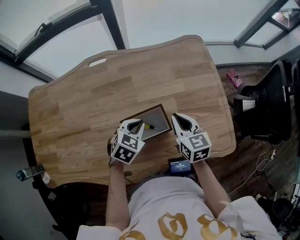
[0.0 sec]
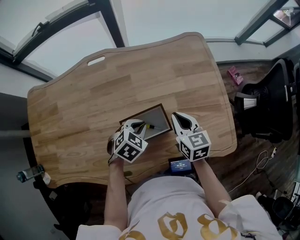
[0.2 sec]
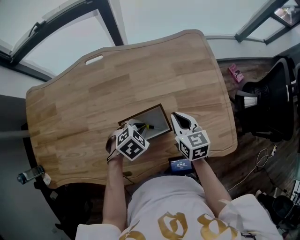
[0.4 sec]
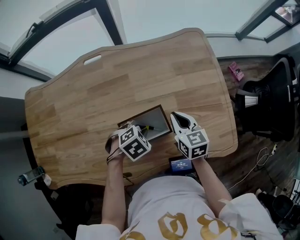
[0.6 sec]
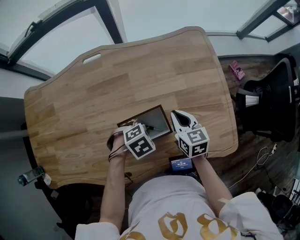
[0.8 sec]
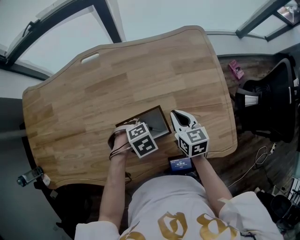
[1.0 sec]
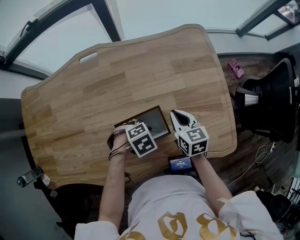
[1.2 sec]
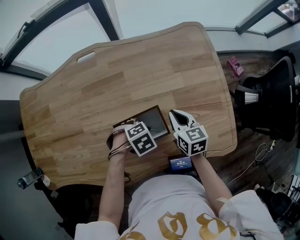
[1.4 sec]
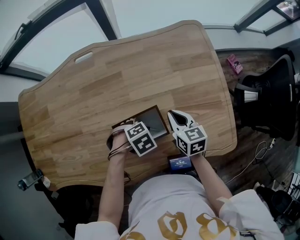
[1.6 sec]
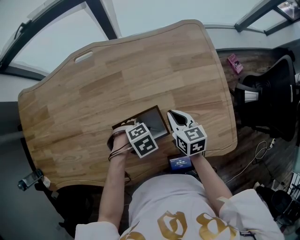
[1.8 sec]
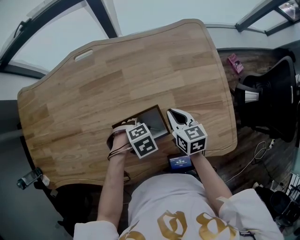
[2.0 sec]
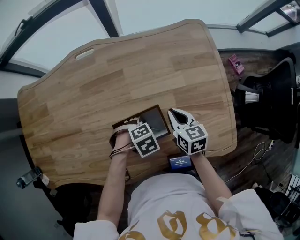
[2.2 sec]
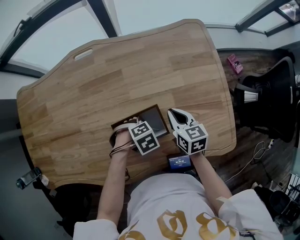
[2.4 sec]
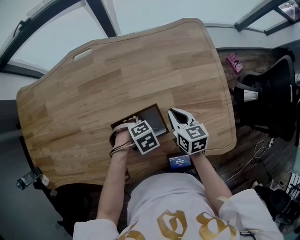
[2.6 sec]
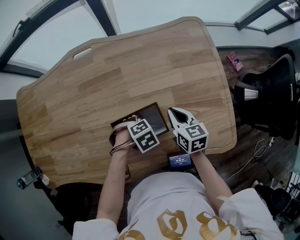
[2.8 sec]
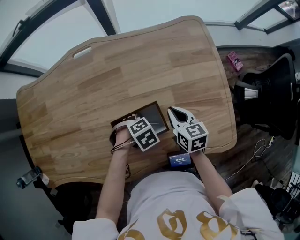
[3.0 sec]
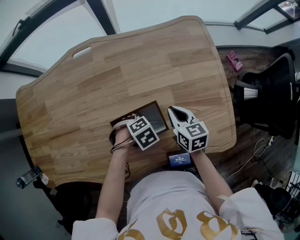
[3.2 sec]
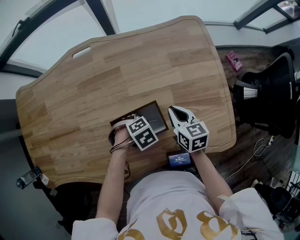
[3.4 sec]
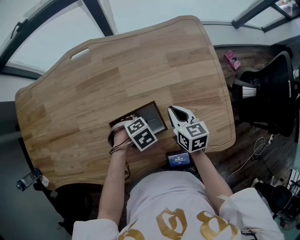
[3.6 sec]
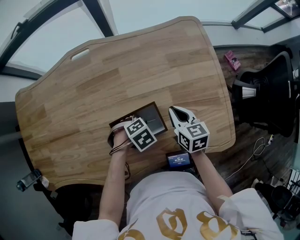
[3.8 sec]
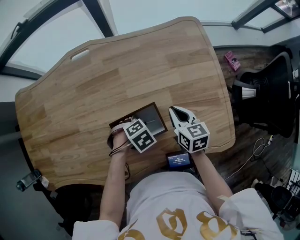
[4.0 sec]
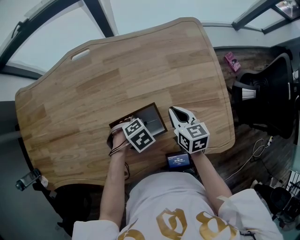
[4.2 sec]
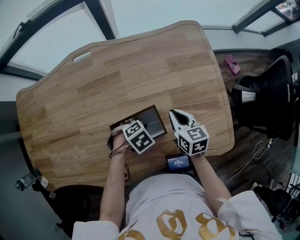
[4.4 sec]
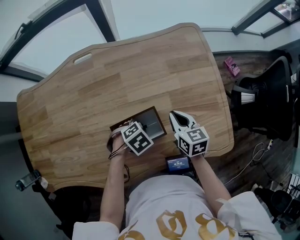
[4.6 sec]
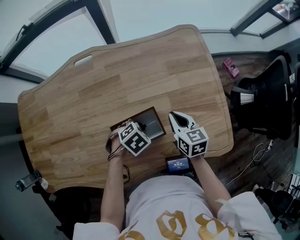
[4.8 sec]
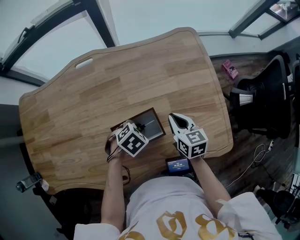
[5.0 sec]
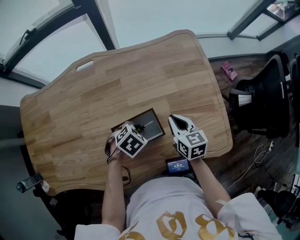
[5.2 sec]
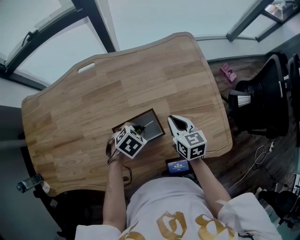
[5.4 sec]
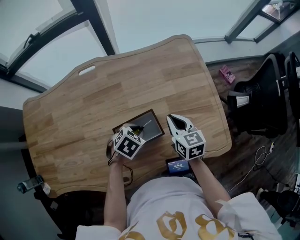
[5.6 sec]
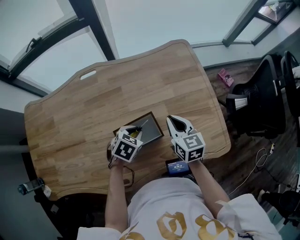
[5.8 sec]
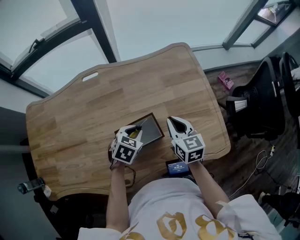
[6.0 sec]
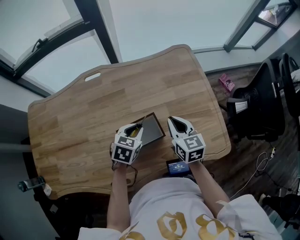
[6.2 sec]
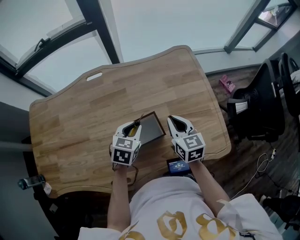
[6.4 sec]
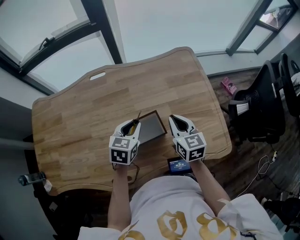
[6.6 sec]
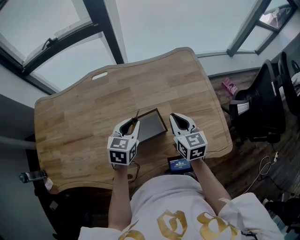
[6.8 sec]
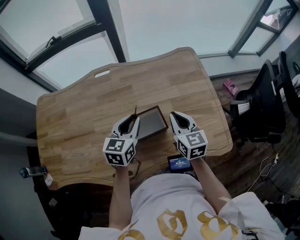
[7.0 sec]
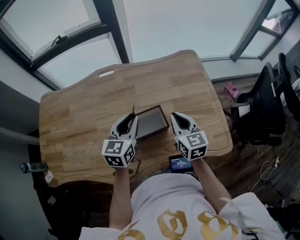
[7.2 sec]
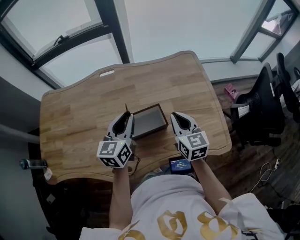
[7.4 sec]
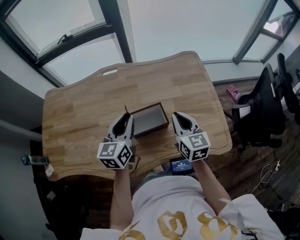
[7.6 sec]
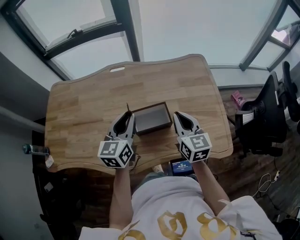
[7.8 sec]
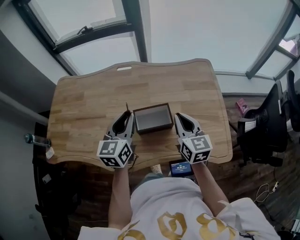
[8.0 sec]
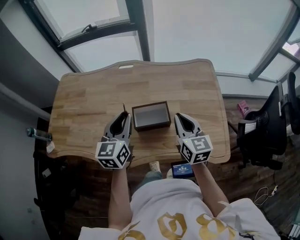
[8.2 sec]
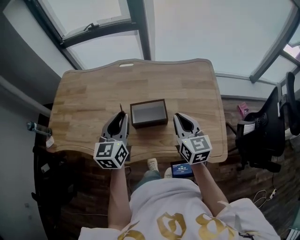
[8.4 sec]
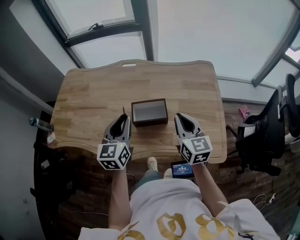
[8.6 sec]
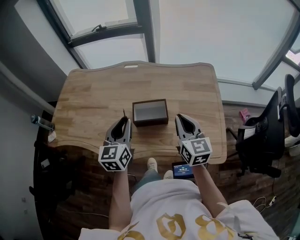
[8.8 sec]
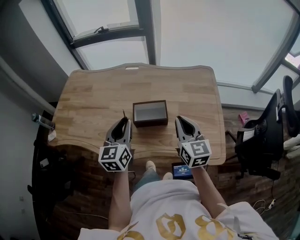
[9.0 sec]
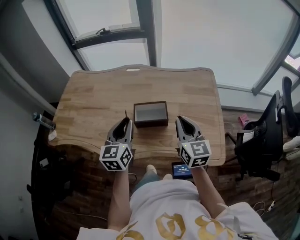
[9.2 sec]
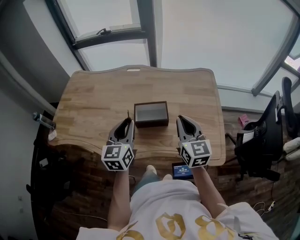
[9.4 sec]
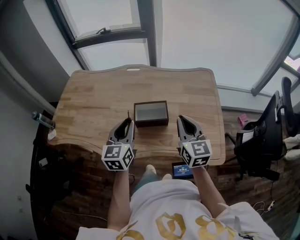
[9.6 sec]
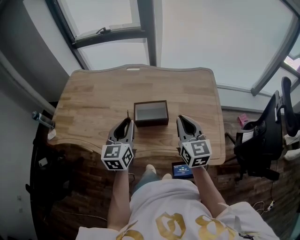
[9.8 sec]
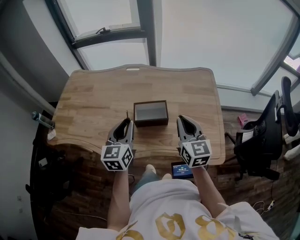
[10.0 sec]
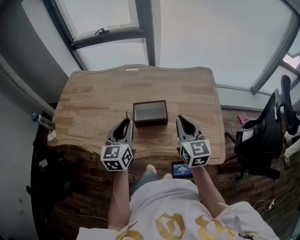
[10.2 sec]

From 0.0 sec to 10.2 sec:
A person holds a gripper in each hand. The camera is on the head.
From 0.0 sec to 1.4 sec: The two grippers go some 10 cm downward. The left gripper turns by approximately 40 degrees.
From 1.4 sec to 4.4 sec: There are only small adjustments of the grippers.
From 4.4 sec to 5.8 sec: Both grippers move upward, about 5 cm. The left gripper turns by some 30 degrees.
From 5.8 sec to 7.2 sec: The right gripper goes about 10 cm upward and backward, while the left gripper moves upward, some 15 cm, and tips its fingers upward by about 40 degrees.
From 7.2 sec to 8.8 sec: The two grippers go some 15 cm backward and upward. The left gripper changes its angle by roughly 30 degrees.
From 8.8 sec to 10.2 sec: There are only small adjustments of the grippers.

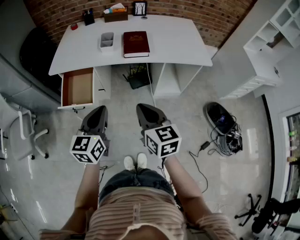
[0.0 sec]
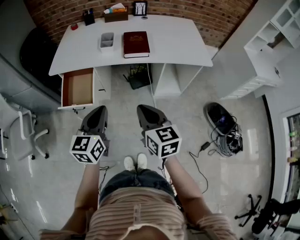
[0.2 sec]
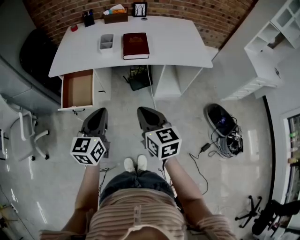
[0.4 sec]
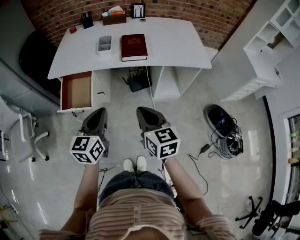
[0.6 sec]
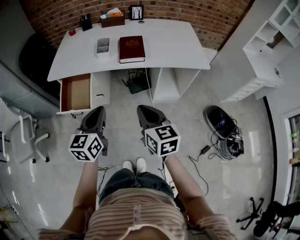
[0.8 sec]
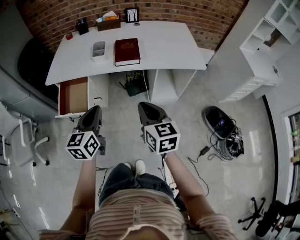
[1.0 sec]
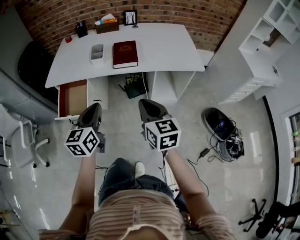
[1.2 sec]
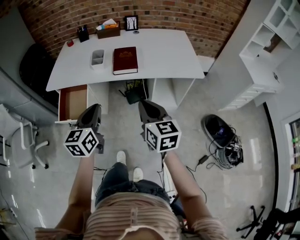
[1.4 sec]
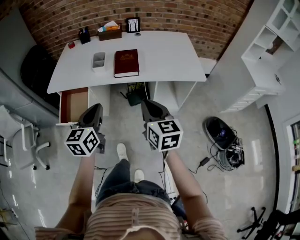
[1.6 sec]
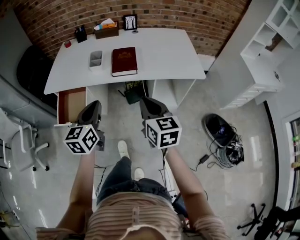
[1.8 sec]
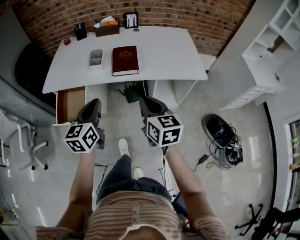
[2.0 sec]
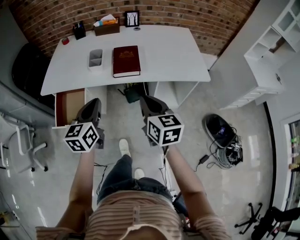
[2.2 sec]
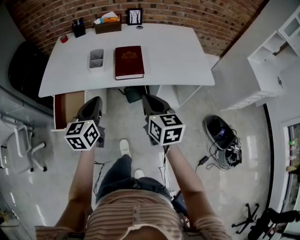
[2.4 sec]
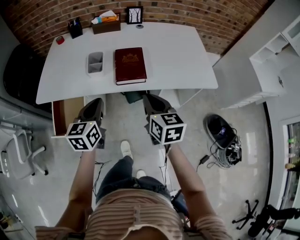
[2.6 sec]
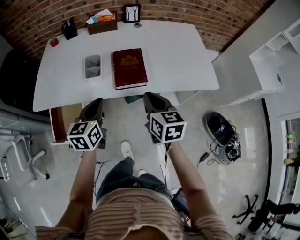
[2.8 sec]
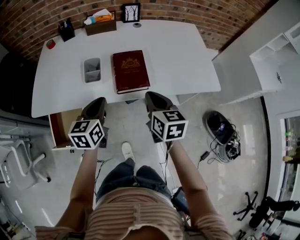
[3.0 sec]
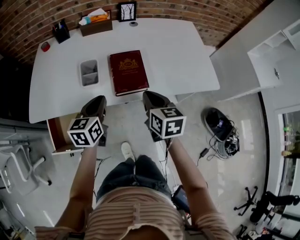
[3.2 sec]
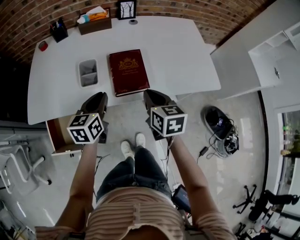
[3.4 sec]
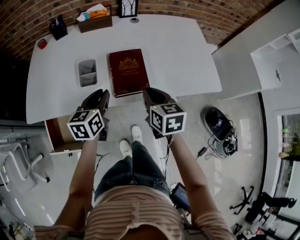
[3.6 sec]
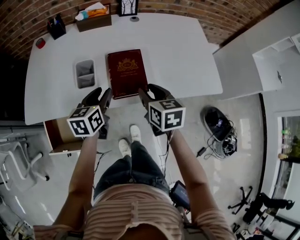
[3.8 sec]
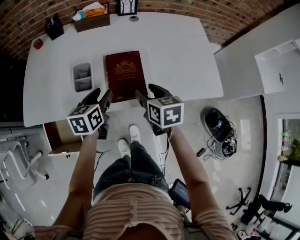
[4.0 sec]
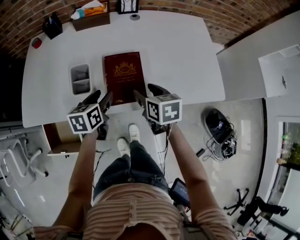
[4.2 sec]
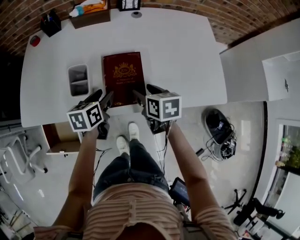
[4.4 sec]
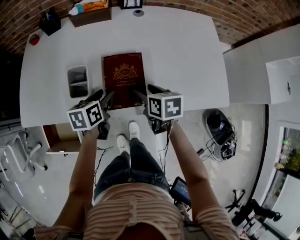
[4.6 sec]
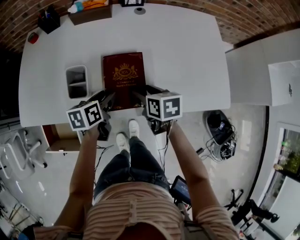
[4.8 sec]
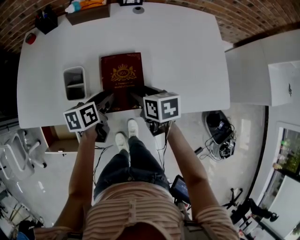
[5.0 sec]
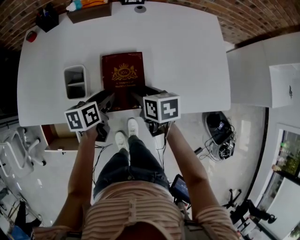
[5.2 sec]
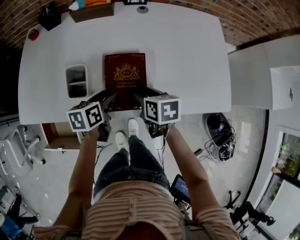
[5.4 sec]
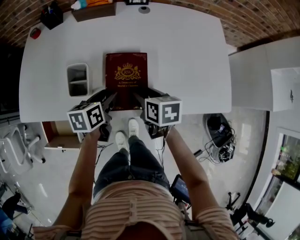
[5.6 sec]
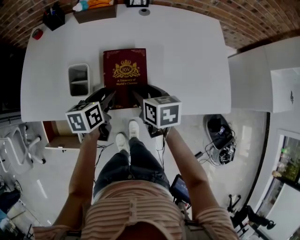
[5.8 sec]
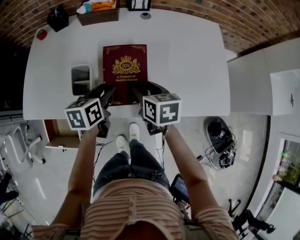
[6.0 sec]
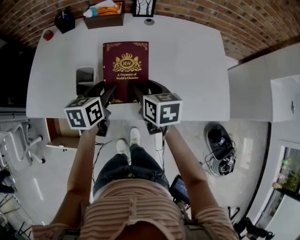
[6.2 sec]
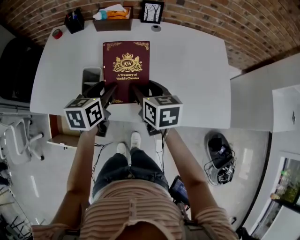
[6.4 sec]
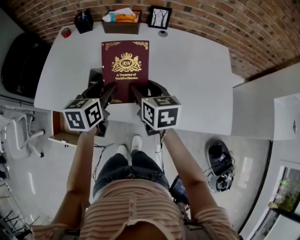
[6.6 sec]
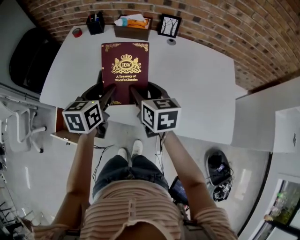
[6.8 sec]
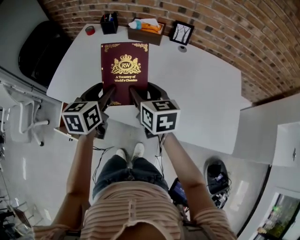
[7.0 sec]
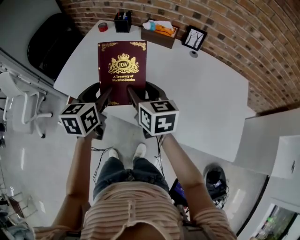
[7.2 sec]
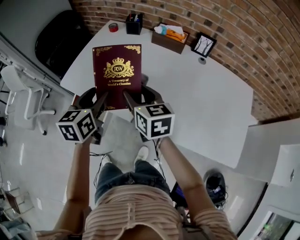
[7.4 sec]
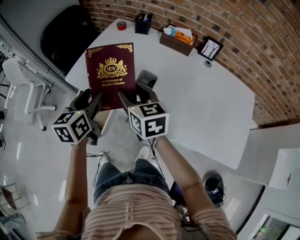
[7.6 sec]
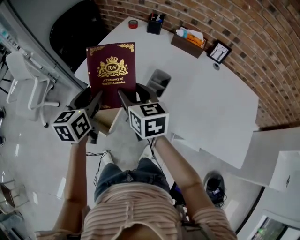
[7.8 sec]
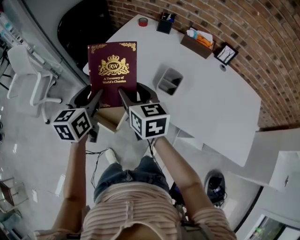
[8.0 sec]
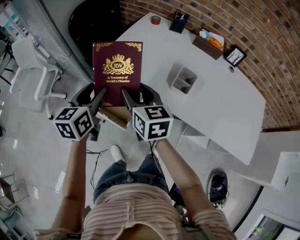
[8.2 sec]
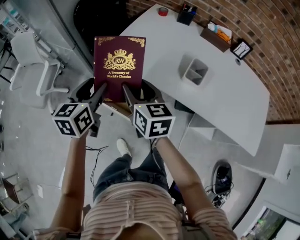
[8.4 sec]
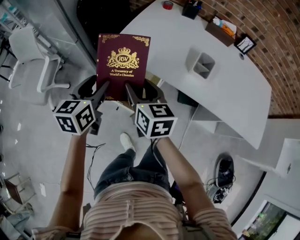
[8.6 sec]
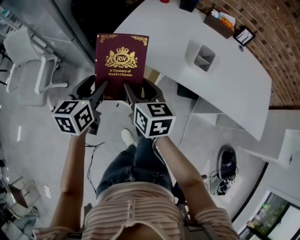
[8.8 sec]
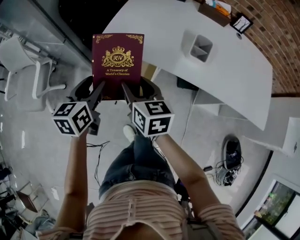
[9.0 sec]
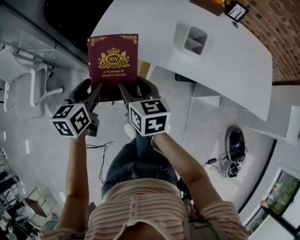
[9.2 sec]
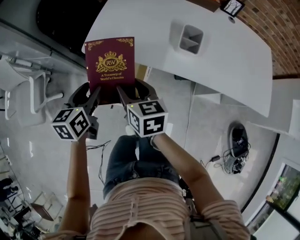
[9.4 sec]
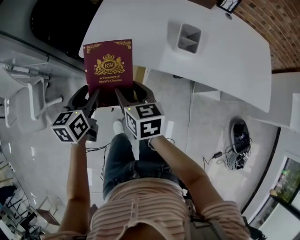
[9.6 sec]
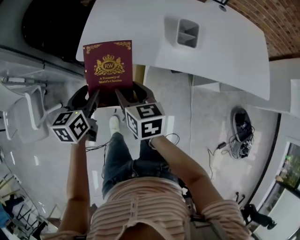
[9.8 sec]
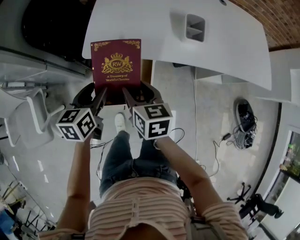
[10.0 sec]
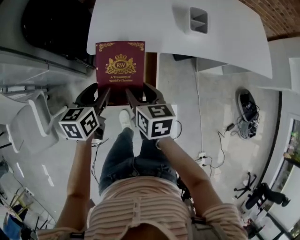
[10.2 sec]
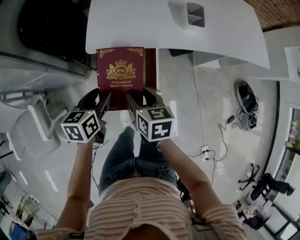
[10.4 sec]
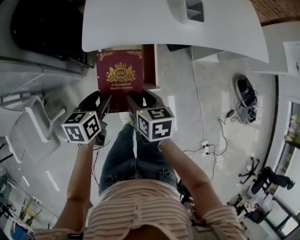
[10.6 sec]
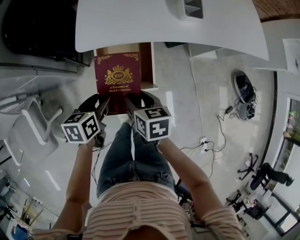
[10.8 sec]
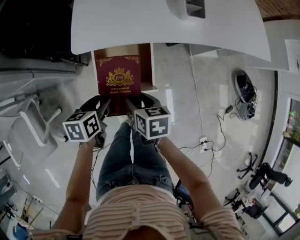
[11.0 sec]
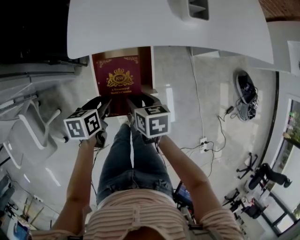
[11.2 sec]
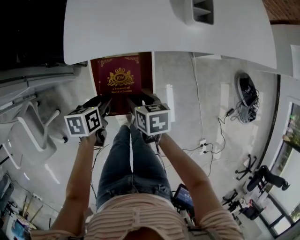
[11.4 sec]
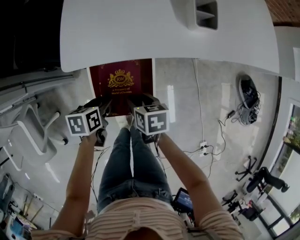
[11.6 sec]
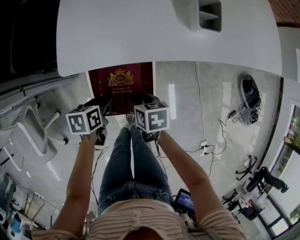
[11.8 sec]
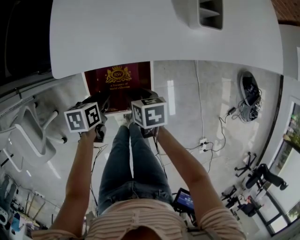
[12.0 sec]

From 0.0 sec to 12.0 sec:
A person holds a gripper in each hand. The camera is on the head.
From 0.0 sec to 1.6 sec: The right gripper travels to the right and forward by about 15 cm; the left gripper moves forward and to the right, about 10 cm.
From 1.6 sec to 3.0 sec: The two grippers go approximately 25 cm forward.
From 3.0 sec to 4.4 sec: Both grippers travel together forward and downward, roughly 15 cm. The left gripper changes its angle by approximately 20 degrees, and opens up. The right gripper changes its angle by approximately 20 degrees, and opens.
From 4.4 sec to 6.0 sec: The grippers make only small movements.
From 6.0 sec to 7.6 sec: The right gripper shifts by approximately 30 cm, and changes its angle by some 40 degrees; the left gripper ends up about 30 cm from where it was, and rotates about 40 degrees.
From 7.6 sec to 9.0 sec: Both grippers travel together to the left, approximately 30 cm.
From 9.0 sec to 10.4 sec: The grippers both shift downward by some 10 cm. The left gripper swivels roughly 30 degrees; the right gripper rotates about 30 degrees.
From 10.4 sec to 12.0 sec: The left gripper goes roughly 20 cm downward, and changes its angle by approximately 30 degrees; the right gripper shifts approximately 20 cm downward and forward, and swivels about 20 degrees.

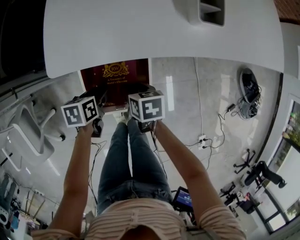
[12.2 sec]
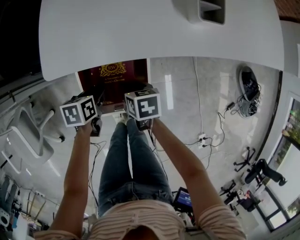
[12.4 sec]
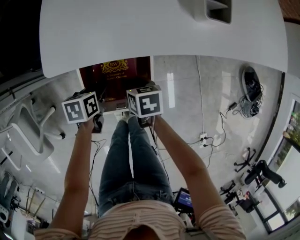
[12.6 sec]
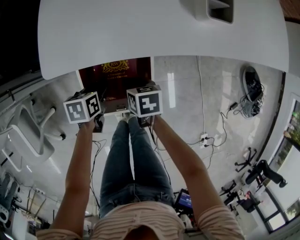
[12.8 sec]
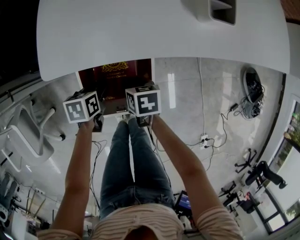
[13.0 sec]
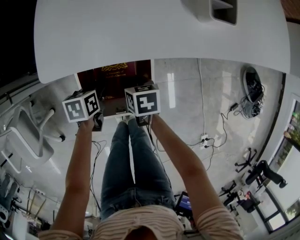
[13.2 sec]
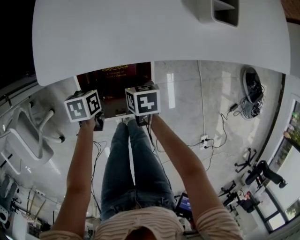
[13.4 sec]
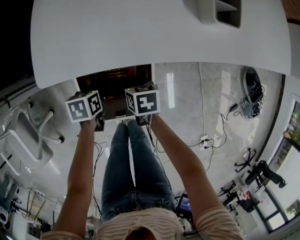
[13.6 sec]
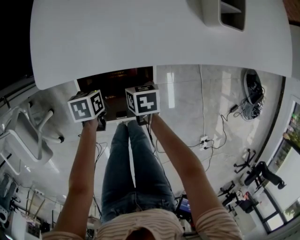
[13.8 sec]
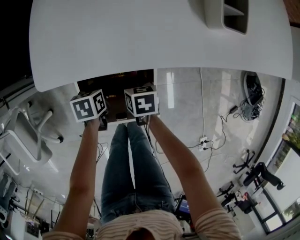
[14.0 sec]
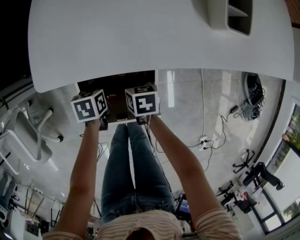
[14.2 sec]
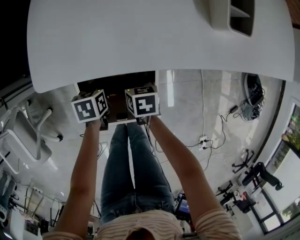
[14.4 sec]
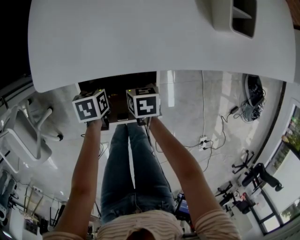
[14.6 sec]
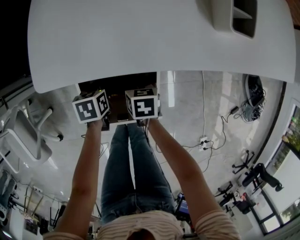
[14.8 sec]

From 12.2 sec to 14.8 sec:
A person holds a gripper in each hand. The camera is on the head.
From 12.2 sec to 13.4 sec: Both grippers travel together downward, some 5 cm.
From 13.4 sec to 14.8 sec: The grippers make only small movements.
